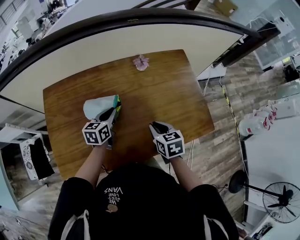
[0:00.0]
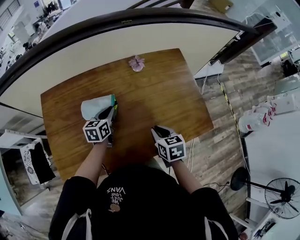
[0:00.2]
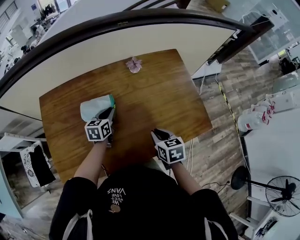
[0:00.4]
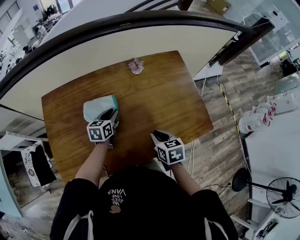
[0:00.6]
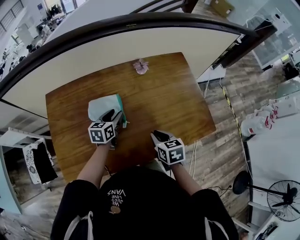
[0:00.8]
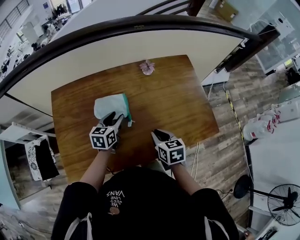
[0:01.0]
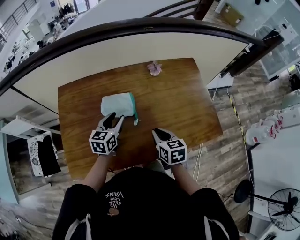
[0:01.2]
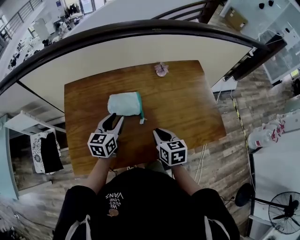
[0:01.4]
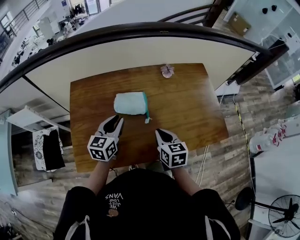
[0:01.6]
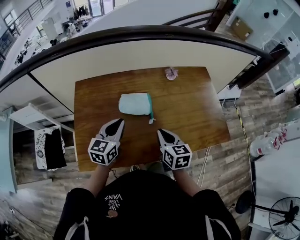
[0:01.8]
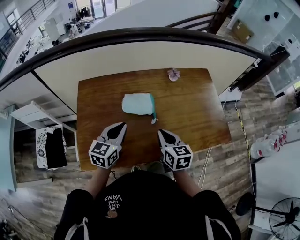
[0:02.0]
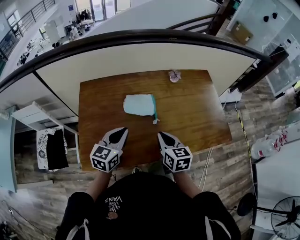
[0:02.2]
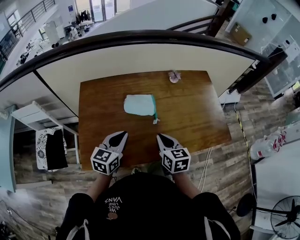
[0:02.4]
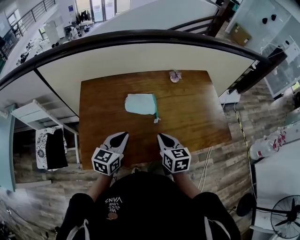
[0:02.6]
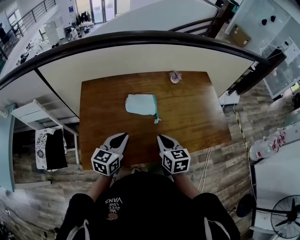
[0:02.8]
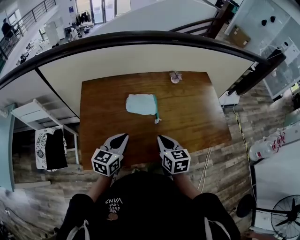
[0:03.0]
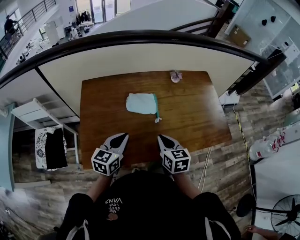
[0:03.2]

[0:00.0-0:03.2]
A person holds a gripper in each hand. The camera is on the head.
0:00.0 to 0:01.6: The left gripper moves to the left, backward and upward, roughly 15 cm. Meanwhile the right gripper moves to the left, roughly 10 cm.
0:01.6 to 0:03.2: The right gripper heads backward, covering approximately 5 cm. Meanwhile the left gripper moves backward, approximately 10 cm, and closes its fingers.

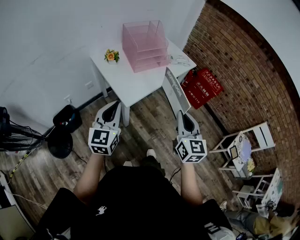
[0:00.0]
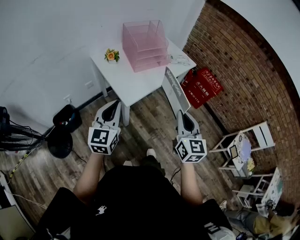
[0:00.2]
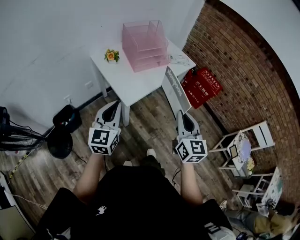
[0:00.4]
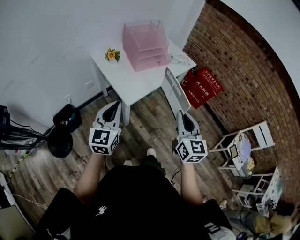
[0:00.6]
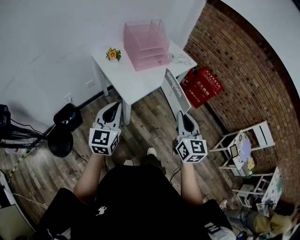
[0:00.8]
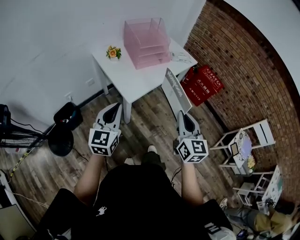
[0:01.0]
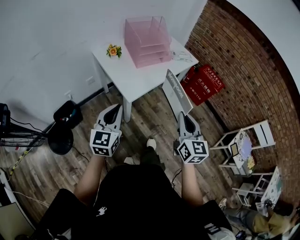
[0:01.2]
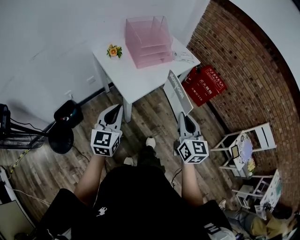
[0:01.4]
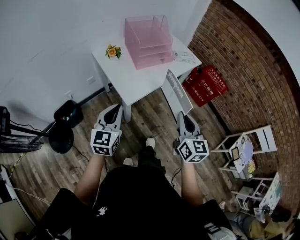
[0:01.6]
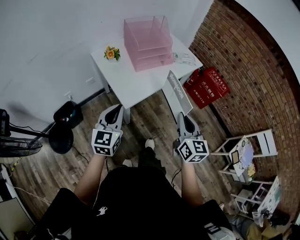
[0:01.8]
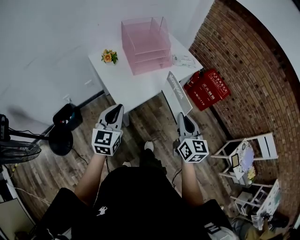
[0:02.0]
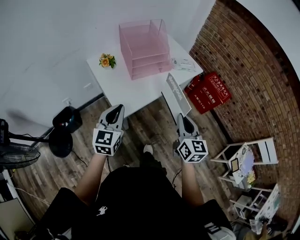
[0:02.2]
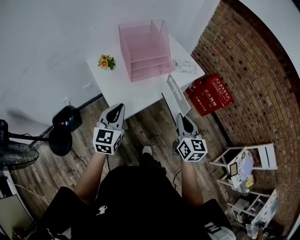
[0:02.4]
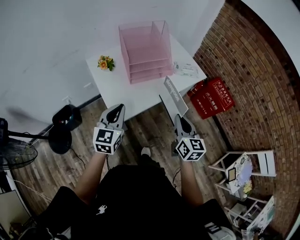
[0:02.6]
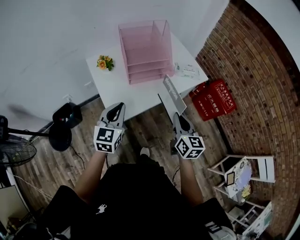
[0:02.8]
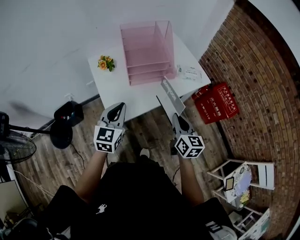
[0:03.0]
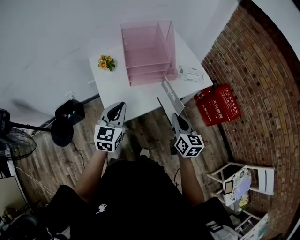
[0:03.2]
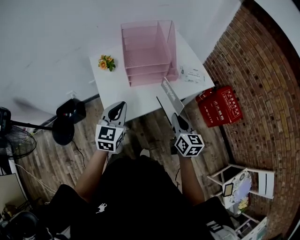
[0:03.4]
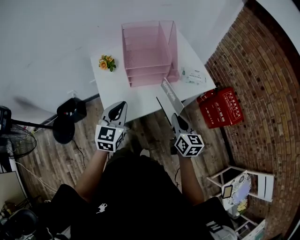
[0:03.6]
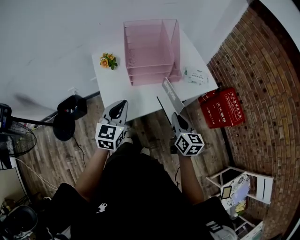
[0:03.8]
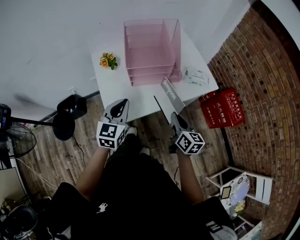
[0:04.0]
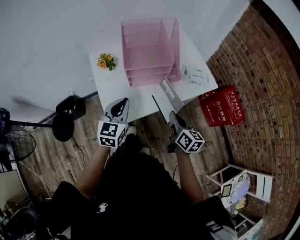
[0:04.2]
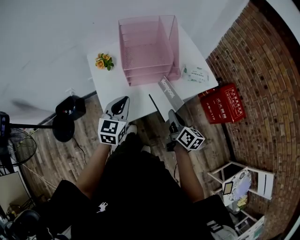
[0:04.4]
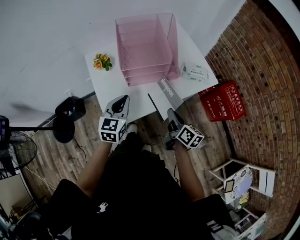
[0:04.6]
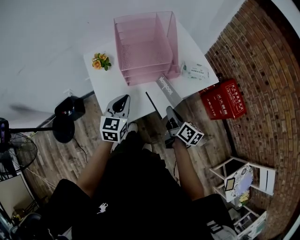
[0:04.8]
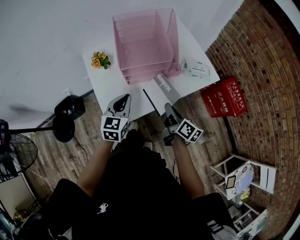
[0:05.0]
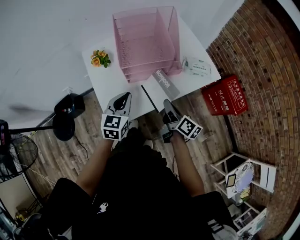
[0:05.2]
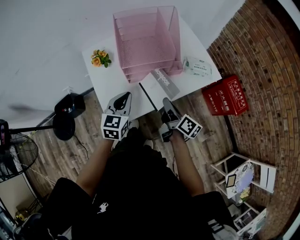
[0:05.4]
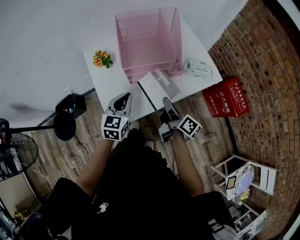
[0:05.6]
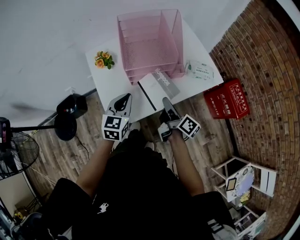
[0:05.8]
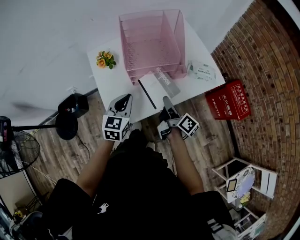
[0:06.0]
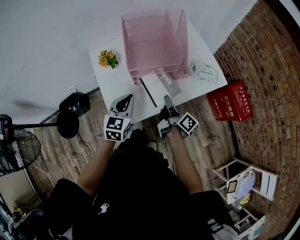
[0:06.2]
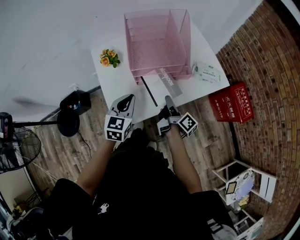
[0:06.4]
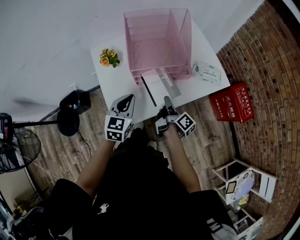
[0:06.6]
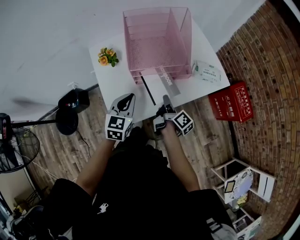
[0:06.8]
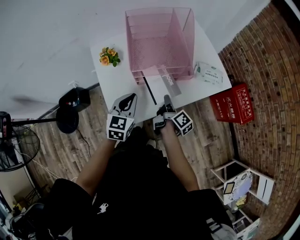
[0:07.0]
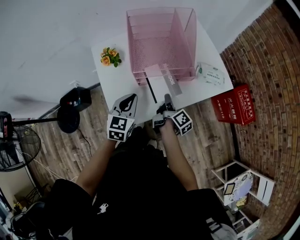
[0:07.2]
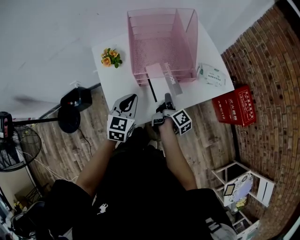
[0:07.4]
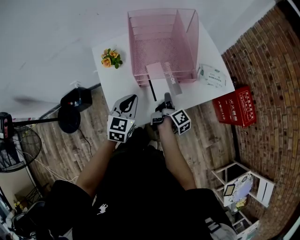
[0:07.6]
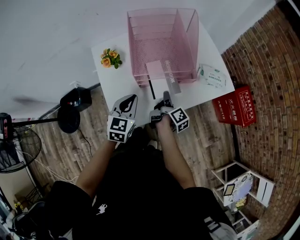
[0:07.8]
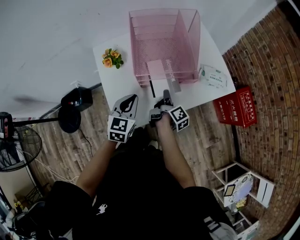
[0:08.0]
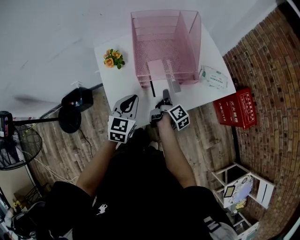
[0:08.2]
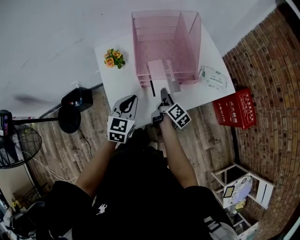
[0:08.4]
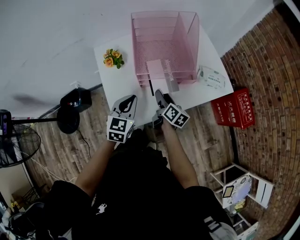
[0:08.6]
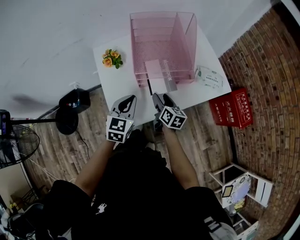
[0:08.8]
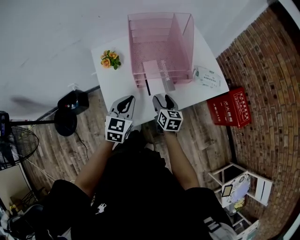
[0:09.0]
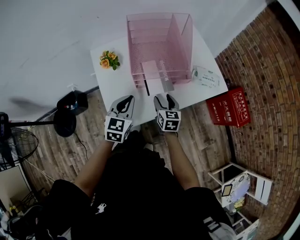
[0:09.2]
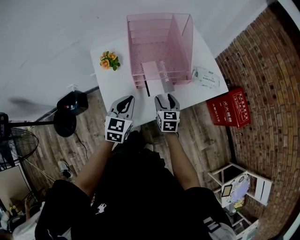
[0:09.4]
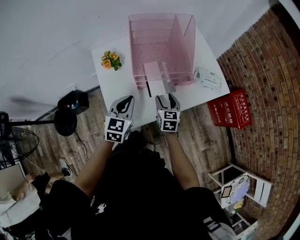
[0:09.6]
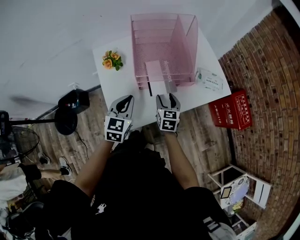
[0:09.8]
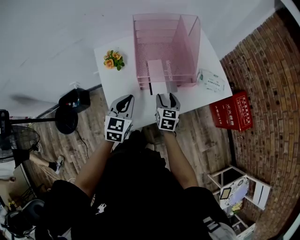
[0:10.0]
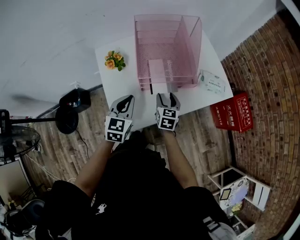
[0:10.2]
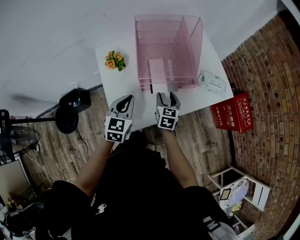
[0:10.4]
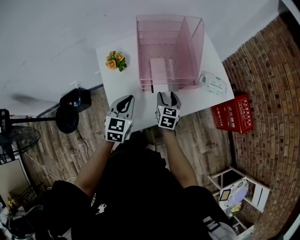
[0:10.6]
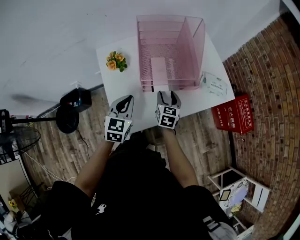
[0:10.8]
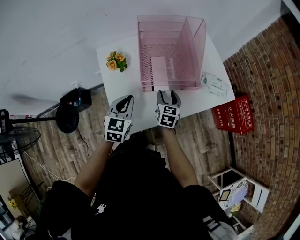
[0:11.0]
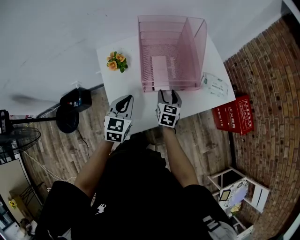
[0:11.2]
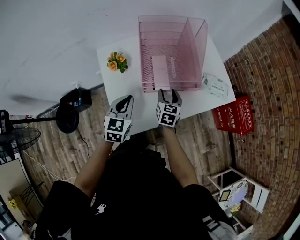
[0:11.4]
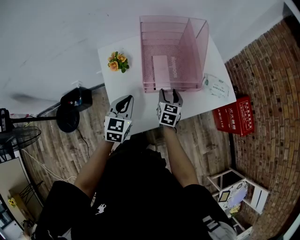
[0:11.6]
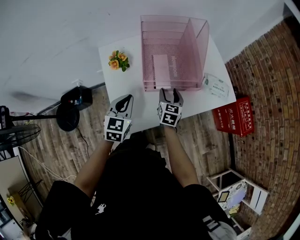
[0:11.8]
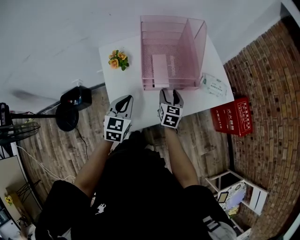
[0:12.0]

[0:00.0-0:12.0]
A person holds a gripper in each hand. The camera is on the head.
0:00.0 to 0:01.6: There are only small adjustments of the grippers.
0:01.6 to 0:03.0: The right gripper travels forward by some 25 cm. The left gripper is displaced forward and to the right by approximately 20 cm.
0:03.0 to 0:04.4: The right gripper shifts about 10 cm forward and downward, and swivels approximately 30 degrees. The left gripper heads forward, covering about 10 cm.
0:04.4 to 0:06.0: The left gripper shifts by about 5 cm, while the right gripper moves forward and to the left, some 10 cm, and rotates approximately 30 degrees.
0:06.0 to 0:07.6: The right gripper moves downward and forward, approximately 10 cm, and changes its angle by about 20 degrees.
0:07.6 to 0:09.0: The right gripper rotates around the line of its fingers by roughly 60 degrees, counterclockwise from behind, and opens up.
0:09.0 to 0:10.4: The grippers stay close to where they were, moving slightly.
0:10.4 to 0:12.0: The grippers make only small movements.

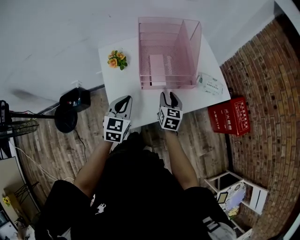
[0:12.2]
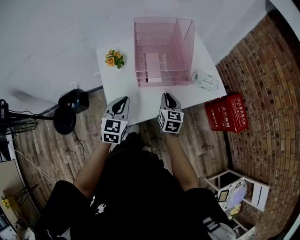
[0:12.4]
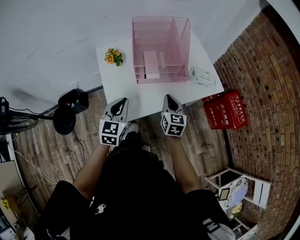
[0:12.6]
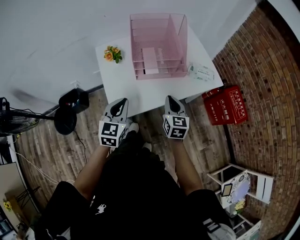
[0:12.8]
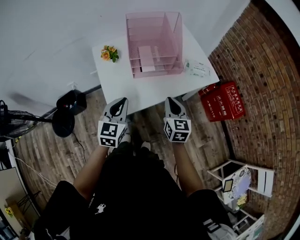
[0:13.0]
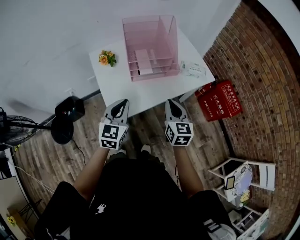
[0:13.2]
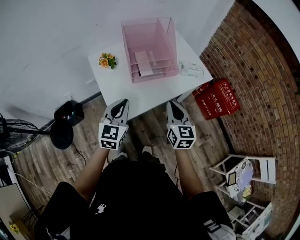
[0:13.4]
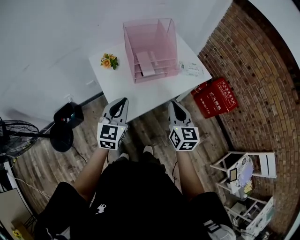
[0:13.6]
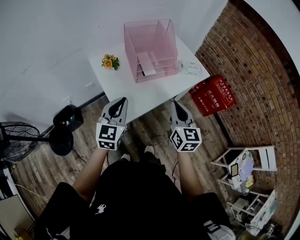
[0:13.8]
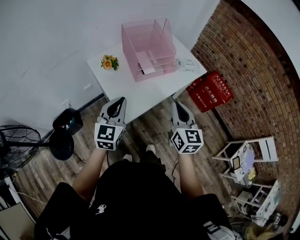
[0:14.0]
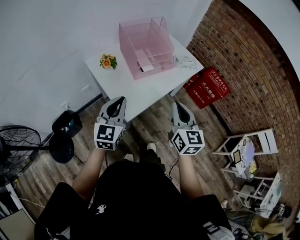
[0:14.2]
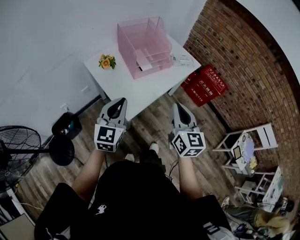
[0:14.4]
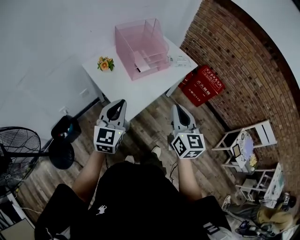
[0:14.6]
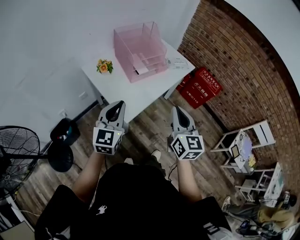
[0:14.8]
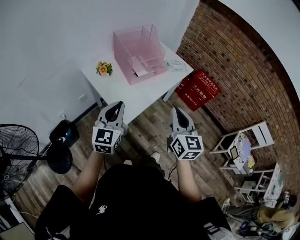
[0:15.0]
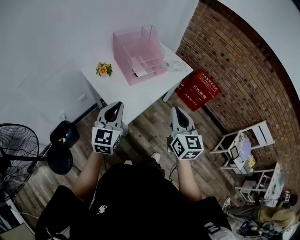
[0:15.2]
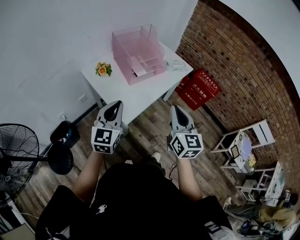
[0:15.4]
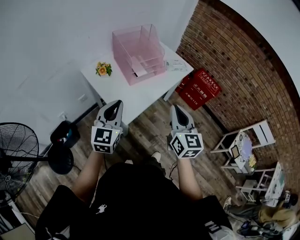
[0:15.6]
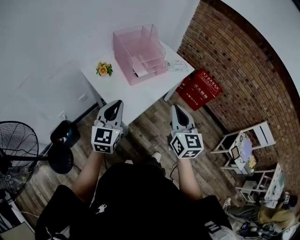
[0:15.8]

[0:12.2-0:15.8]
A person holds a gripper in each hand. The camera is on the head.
0:12.2 to 0:14.0: The right gripper shifts some 30 cm backward and upward, rotates some 20 degrees, and closes, while the left gripper heads backward and upward, covering approximately 20 cm, and rotates roughly 20 degrees.
0:14.0 to 0:15.8: The left gripper changes place by approximately 5 cm, while the right gripper heads backward, covering approximately 5 cm.

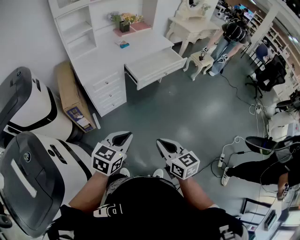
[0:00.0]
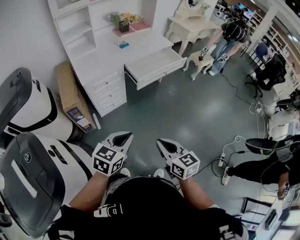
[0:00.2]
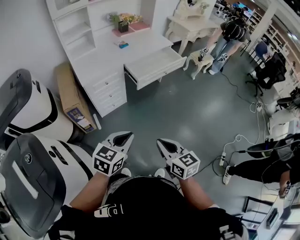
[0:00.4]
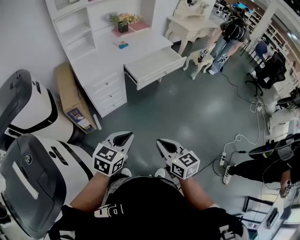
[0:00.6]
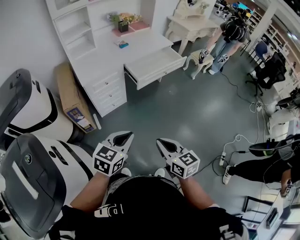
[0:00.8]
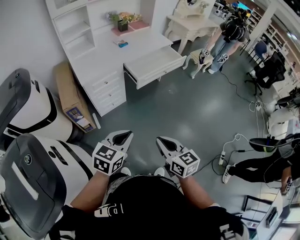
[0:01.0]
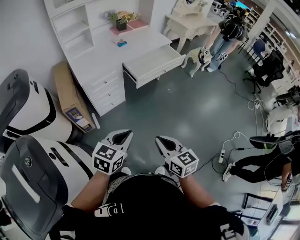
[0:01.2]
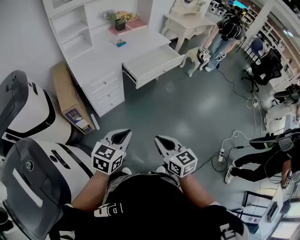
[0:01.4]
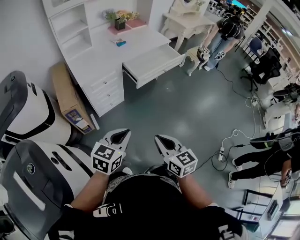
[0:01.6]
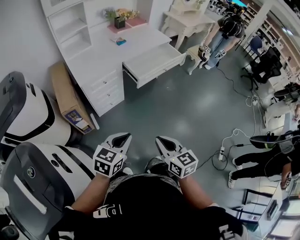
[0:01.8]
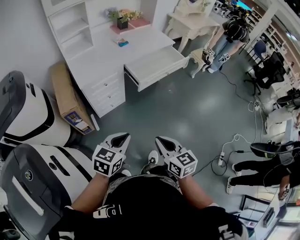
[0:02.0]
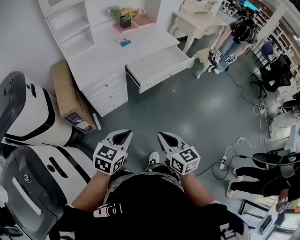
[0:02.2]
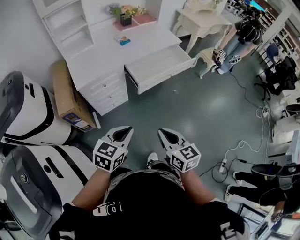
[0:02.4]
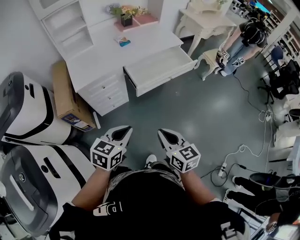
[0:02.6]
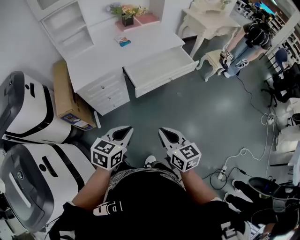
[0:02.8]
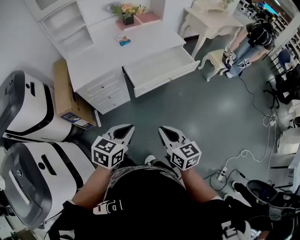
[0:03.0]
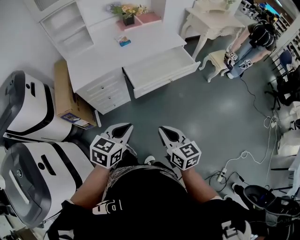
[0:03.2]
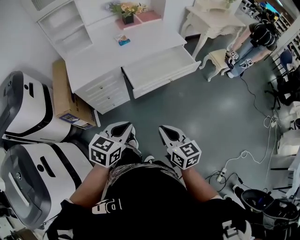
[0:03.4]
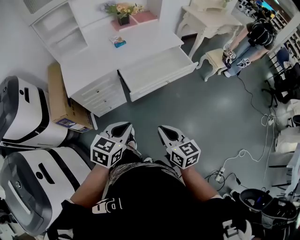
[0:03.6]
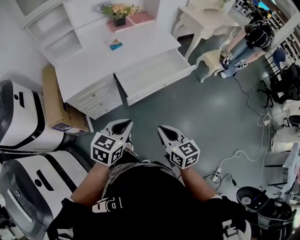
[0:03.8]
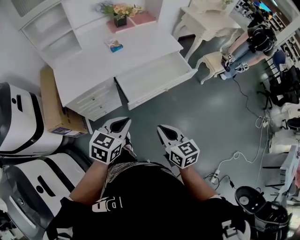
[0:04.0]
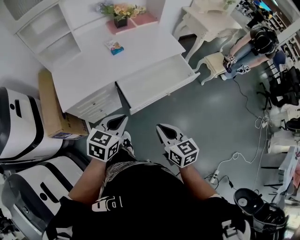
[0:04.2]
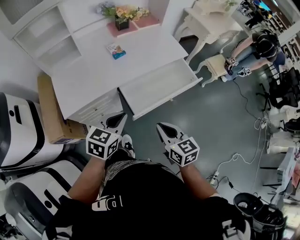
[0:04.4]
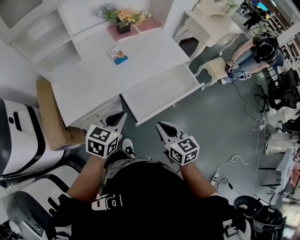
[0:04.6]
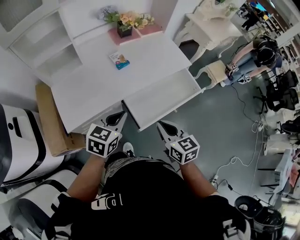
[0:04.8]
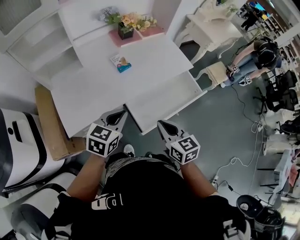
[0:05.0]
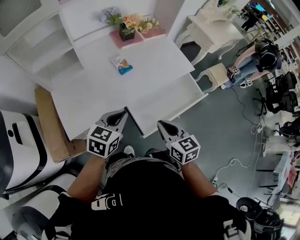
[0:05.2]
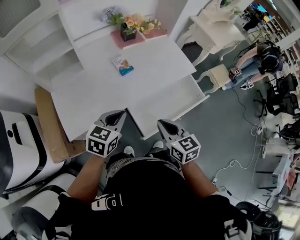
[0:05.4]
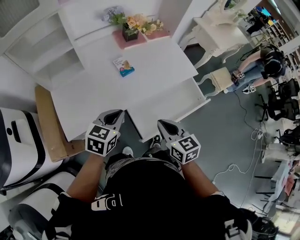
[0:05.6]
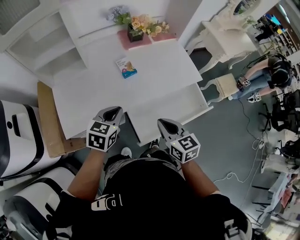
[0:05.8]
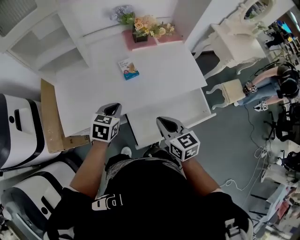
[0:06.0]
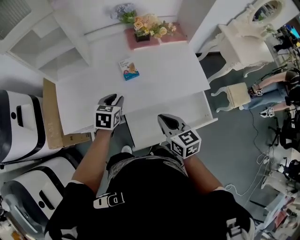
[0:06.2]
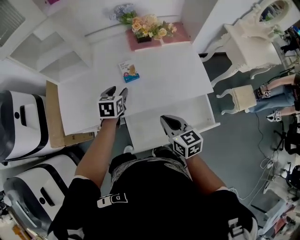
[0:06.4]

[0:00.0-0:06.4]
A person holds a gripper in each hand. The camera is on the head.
0:00.0 to 0:01.6: The left gripper changes place by about 5 cm.
0:01.6 to 0:03.2: The two grippers go roughly 25 cm forward and to the right.
0:03.2 to 0:04.8: The grippers both shift forward by about 35 cm.
0:04.8 to 0:06.4: The left gripper ends up some 30 cm from where it was, swivels approximately 40 degrees, and opens its fingers. The right gripper moves approximately 20 cm.
